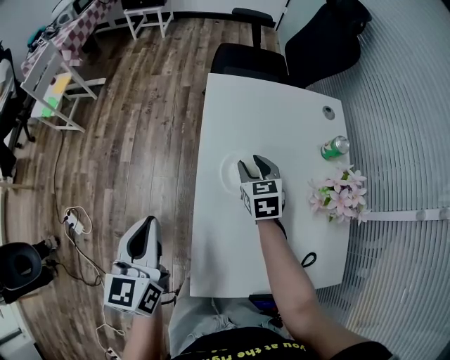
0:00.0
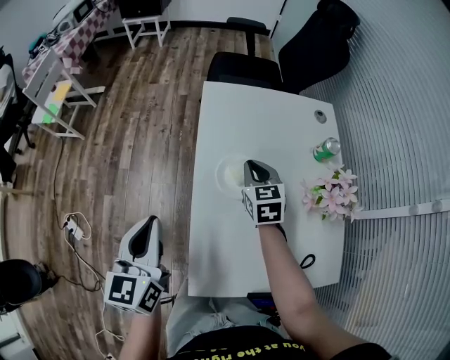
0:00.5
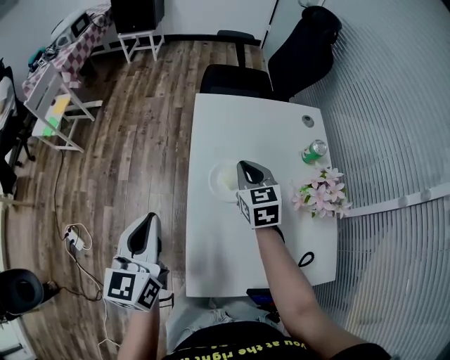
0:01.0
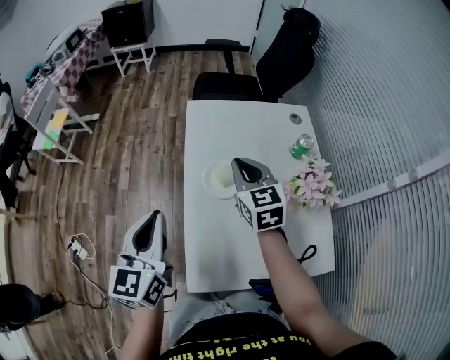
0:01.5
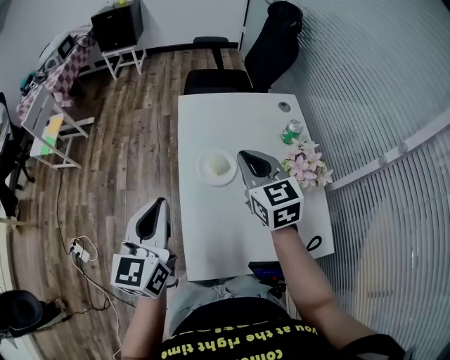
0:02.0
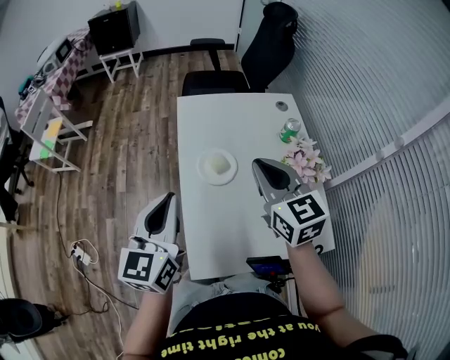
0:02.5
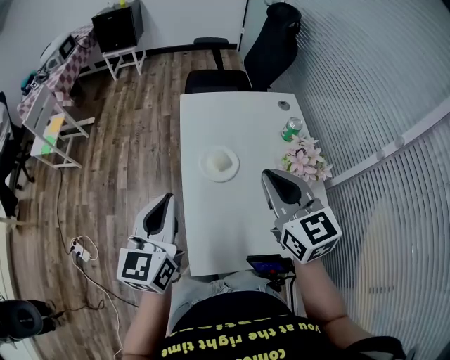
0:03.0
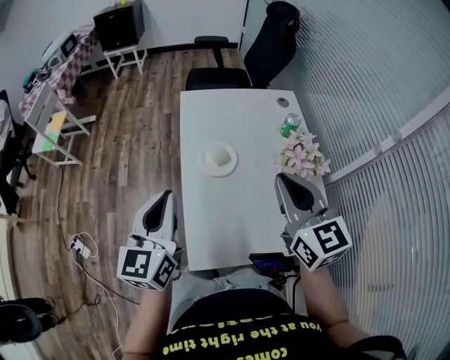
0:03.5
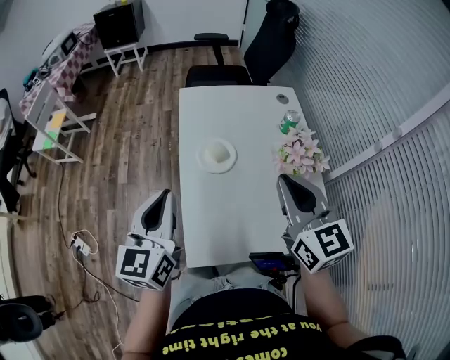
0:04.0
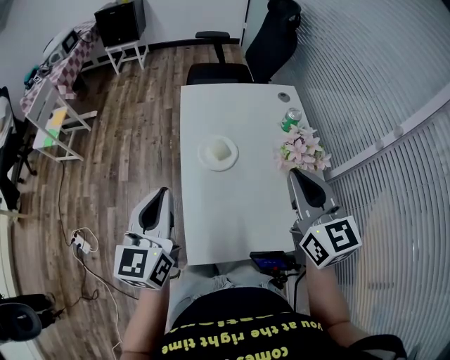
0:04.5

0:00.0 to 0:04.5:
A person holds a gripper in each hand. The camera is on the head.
0:00.0 to 0:02.0: The left gripper moves upward and to the right, approximately 15 cm, while the right gripper is displaced upward and backward by approximately 25 cm, and closes.
0:02.0 to 0:04.5: The right gripper goes approximately 15 cm backward, upward and to the right.

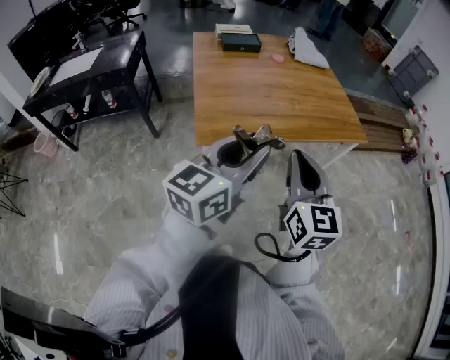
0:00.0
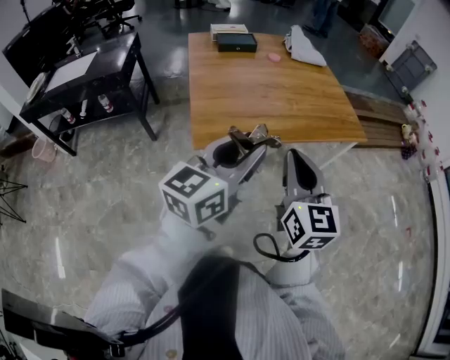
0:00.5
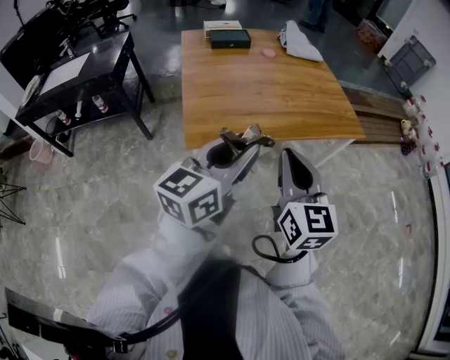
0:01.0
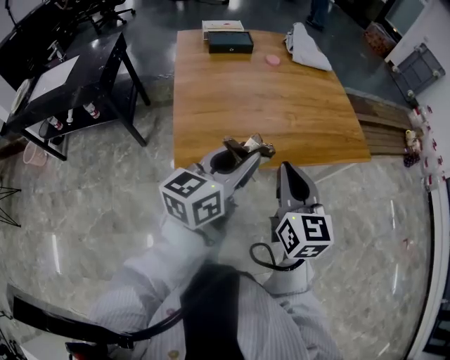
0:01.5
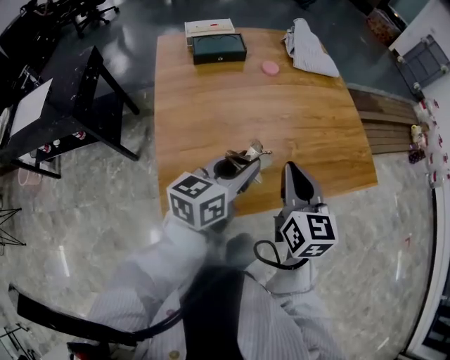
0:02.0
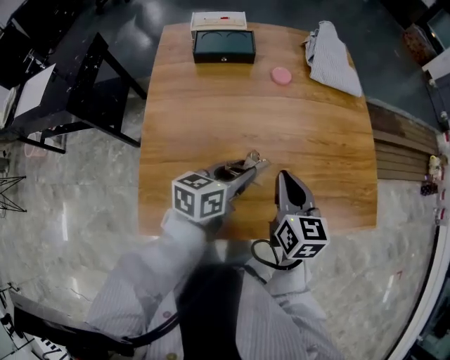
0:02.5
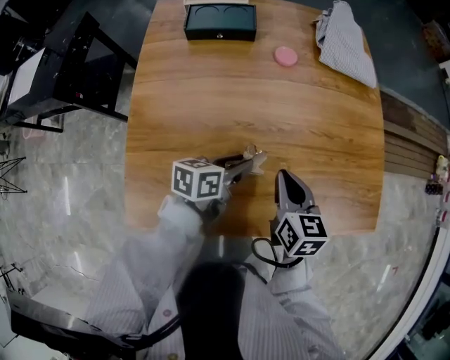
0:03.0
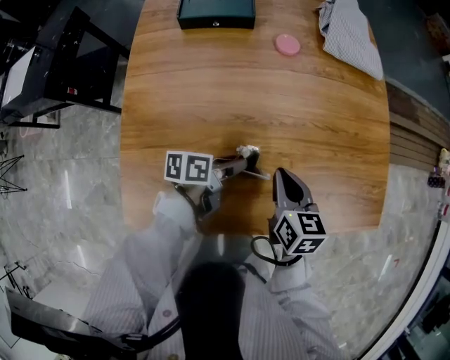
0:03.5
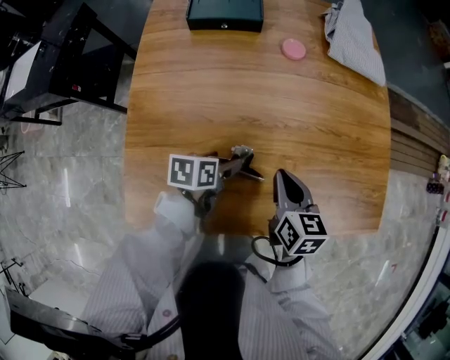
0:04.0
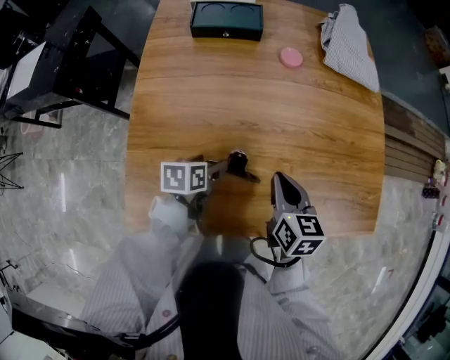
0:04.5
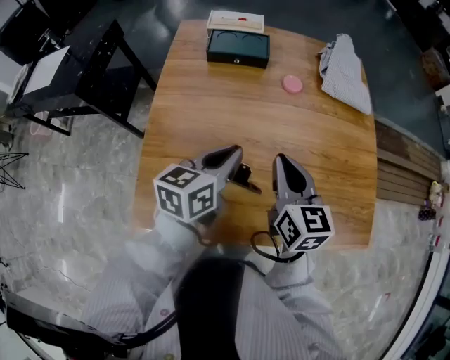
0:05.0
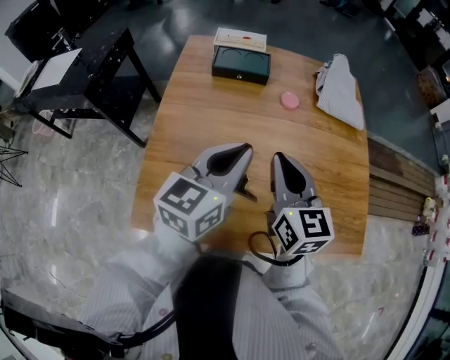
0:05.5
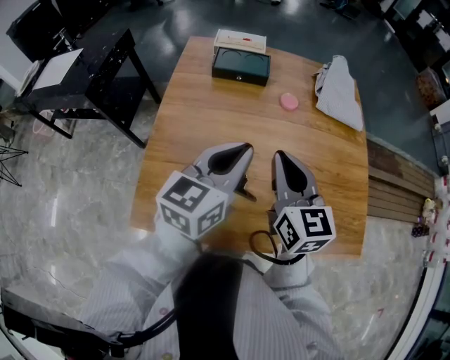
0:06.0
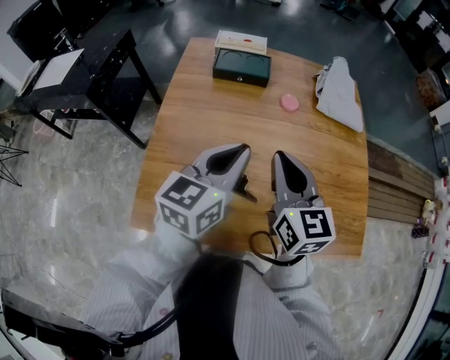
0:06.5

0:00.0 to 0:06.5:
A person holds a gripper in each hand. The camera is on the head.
0:00.0 to 0:02.0: The two grippers go roughly 35 cm forward.
0:02.0 to 0:04.5: The left gripper heads downward, covering about 25 cm, tips its fingers downward by about 40 degrees, and opens its fingers. The right gripper heads downward and forward, covering roughly 20 cm, and rotates roughly 30 degrees.
0:04.5 to 0:06.5: The left gripper is displaced upward by about 30 cm, angles its fingers upward, by some 40 degrees, and closes, while the right gripper shifts some 20 cm upward, and turns by approximately 30 degrees.

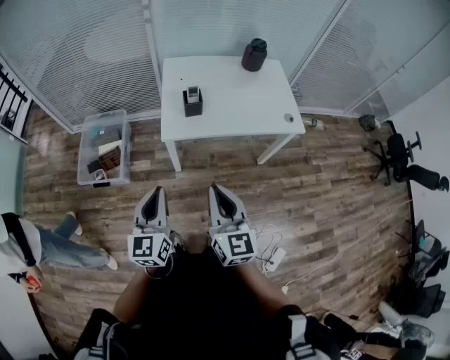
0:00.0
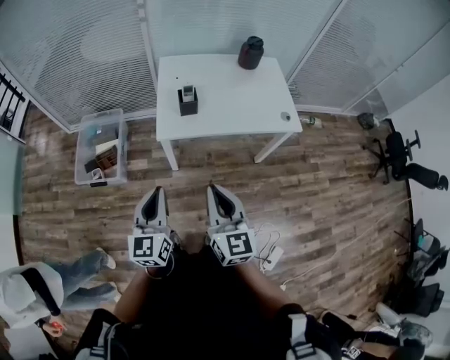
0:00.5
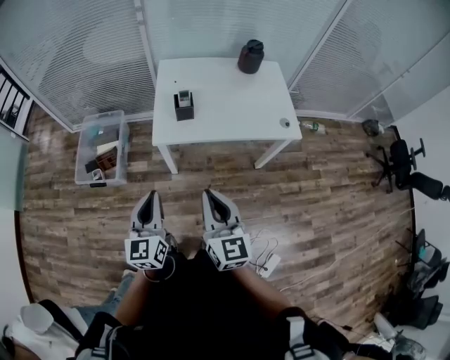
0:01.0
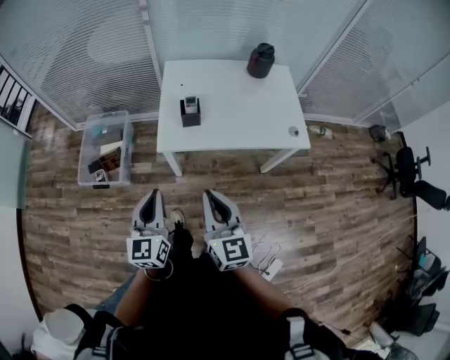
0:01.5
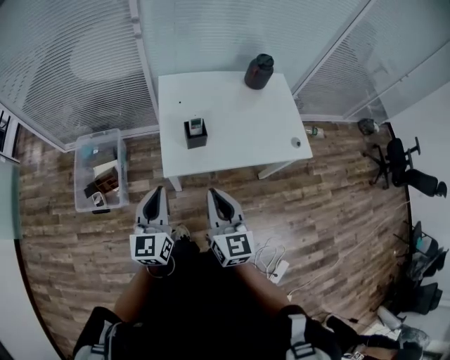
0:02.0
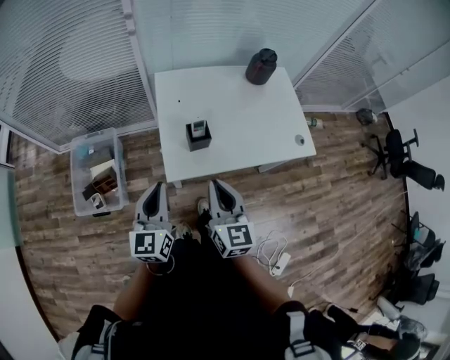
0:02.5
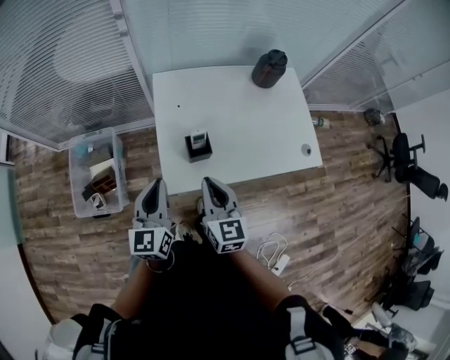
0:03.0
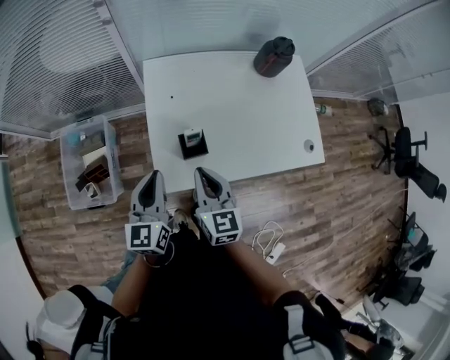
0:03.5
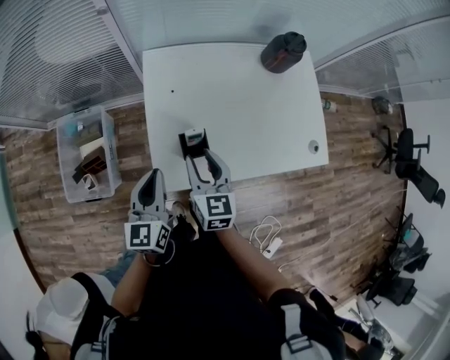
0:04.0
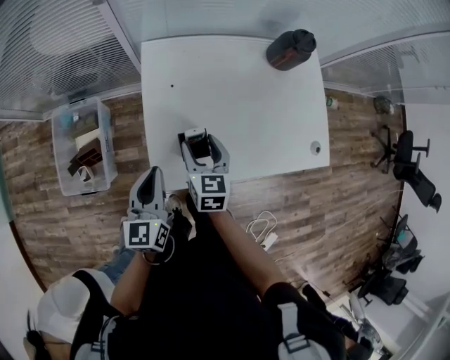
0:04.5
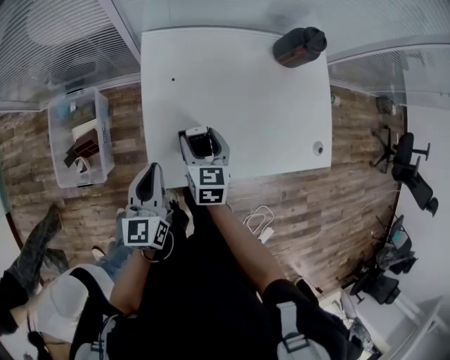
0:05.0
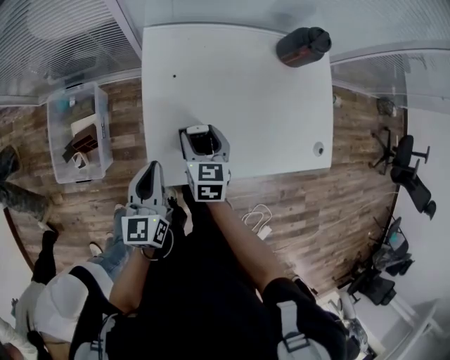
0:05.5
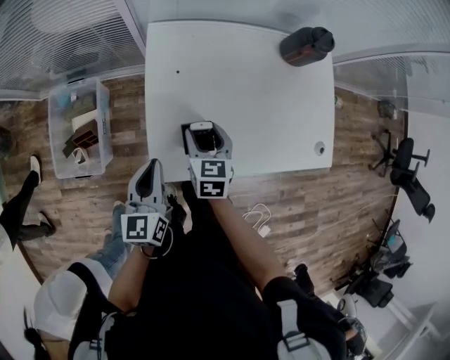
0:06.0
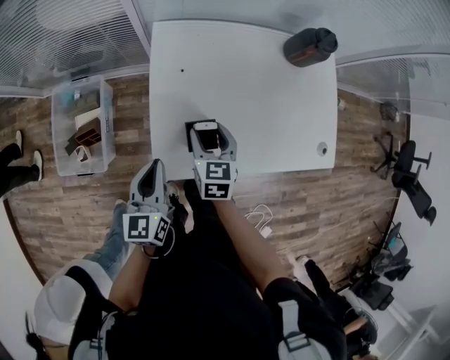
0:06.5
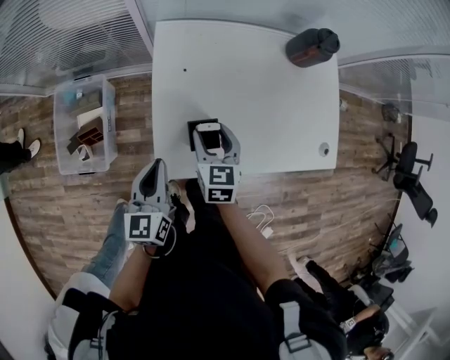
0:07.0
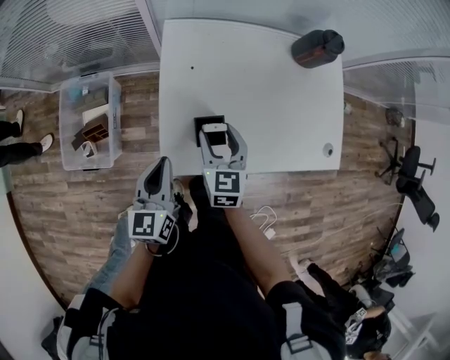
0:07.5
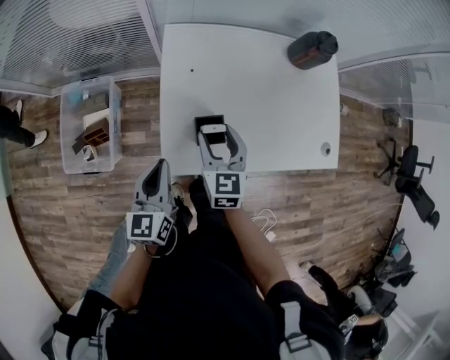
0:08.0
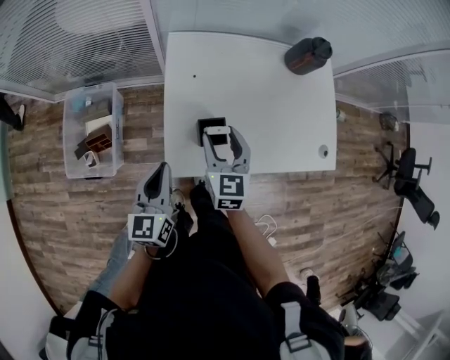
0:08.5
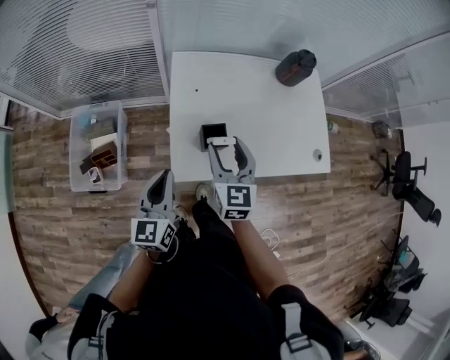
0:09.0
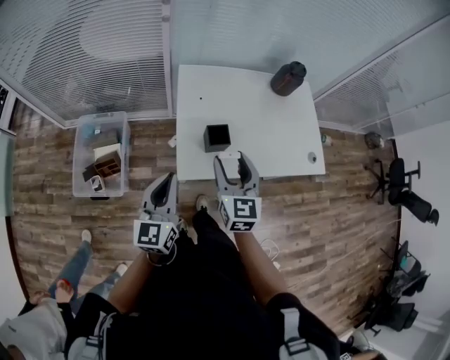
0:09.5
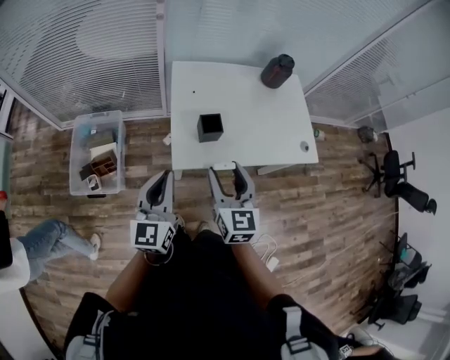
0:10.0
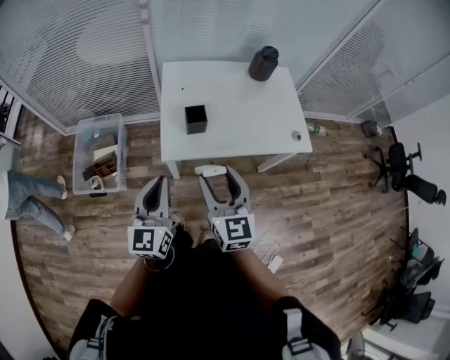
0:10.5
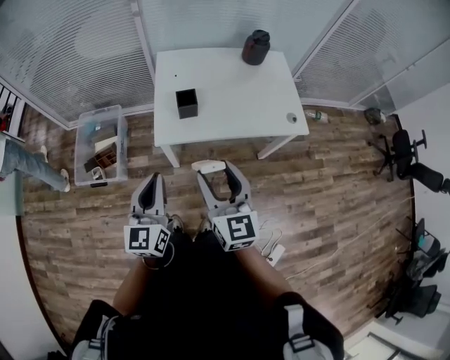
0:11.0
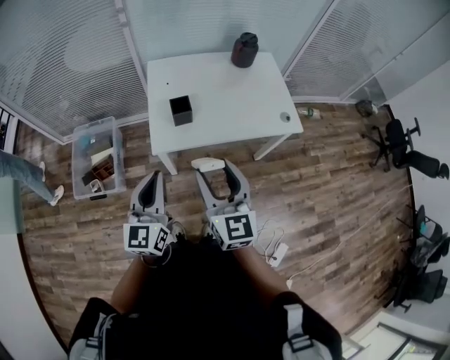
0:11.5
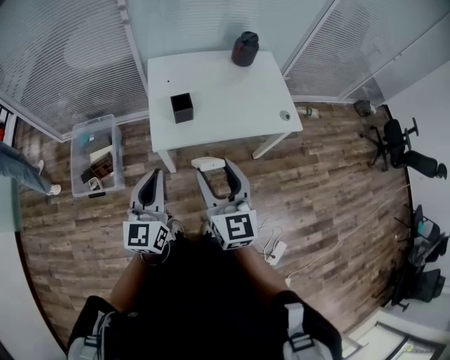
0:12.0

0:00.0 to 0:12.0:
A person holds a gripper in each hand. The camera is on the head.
0:00.0 to 0:02.0: The two grippers go about 20 cm forward.
0:02.0 to 0:04.0: The right gripper shifts approximately 30 cm forward and downward, and opens up; the left gripper shifts roughly 25 cm forward.
0:04.0 to 0:06.0: The right gripper travels downward and forward by approximately 10 cm, and opens up. The left gripper travels downward by some 5 cm.
0:06.0 to 0:08.0: The right gripper heads upward, covering about 5 cm.
0:08.0 to 0:10.0: Both grippers move backward and upward, roughly 25 cm.
0:10.0 to 0:12.0: The right gripper shifts about 15 cm backward, to the right and upward, while the left gripper travels backward and to the right by approximately 15 cm.

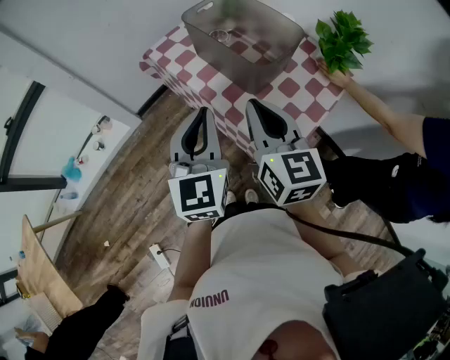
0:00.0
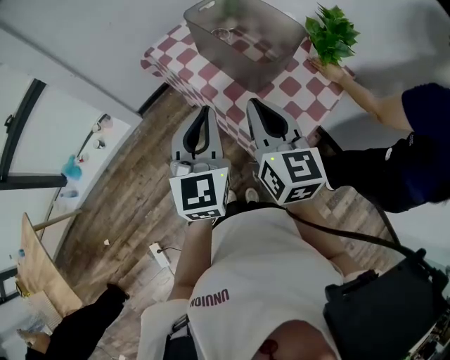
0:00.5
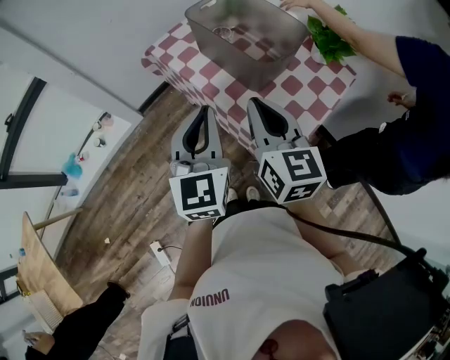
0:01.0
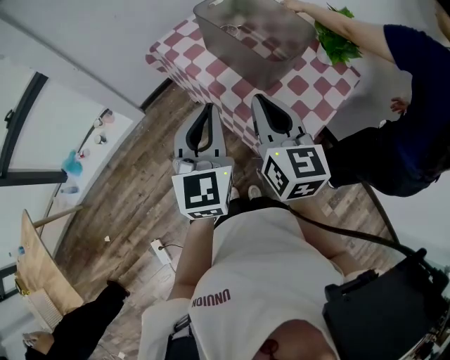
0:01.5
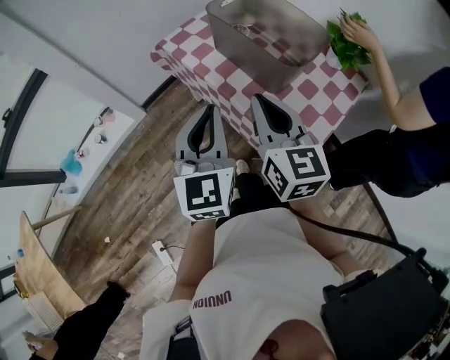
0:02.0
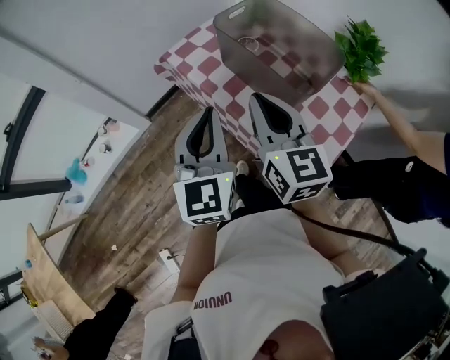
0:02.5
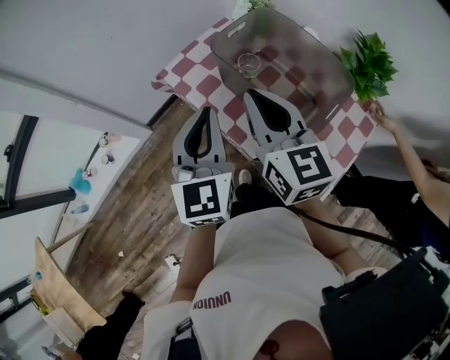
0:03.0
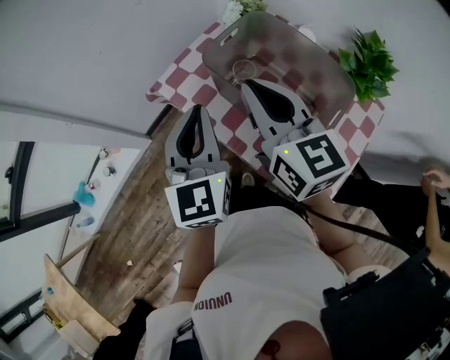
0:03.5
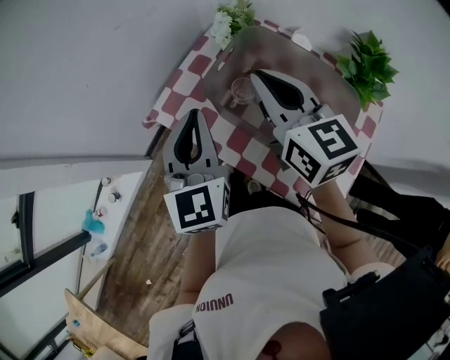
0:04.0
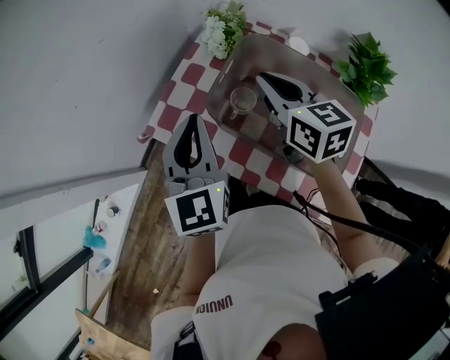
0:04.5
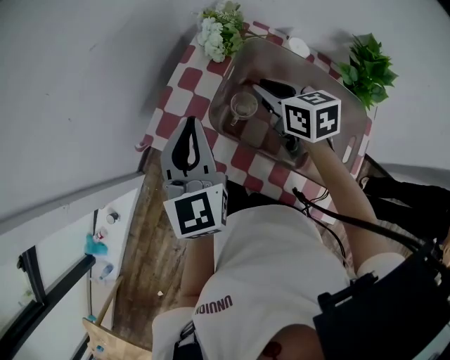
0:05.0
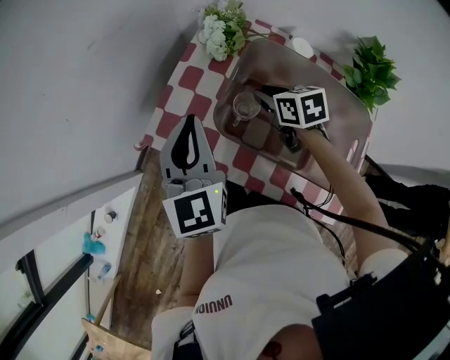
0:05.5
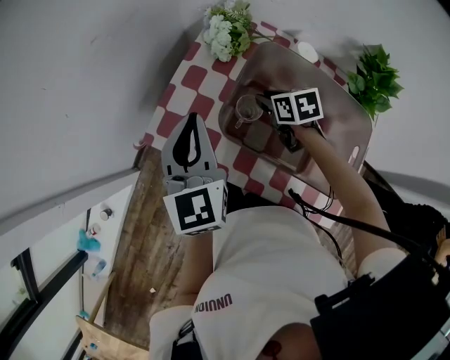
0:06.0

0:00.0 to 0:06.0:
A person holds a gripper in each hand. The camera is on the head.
0:00.0 to 0:02.0: Both grippers travel together to the left, roughly 5 cm.
0:02.0 to 0:04.0: Both grippers move forward, some 30 cm.
0:04.0 to 0:06.0: The right gripper goes about 25 cm downward, tilts its fingers roughly 40 degrees downward, and opens its fingers. The left gripper heads forward, covering some 10 cm.
